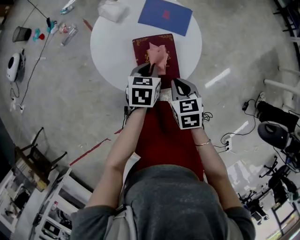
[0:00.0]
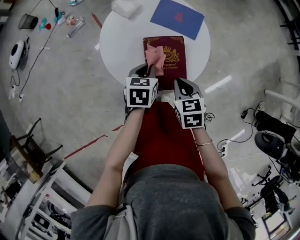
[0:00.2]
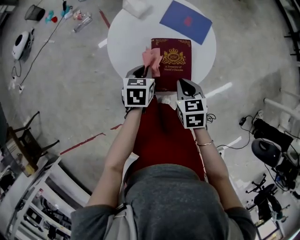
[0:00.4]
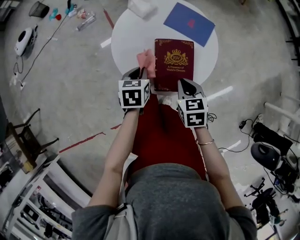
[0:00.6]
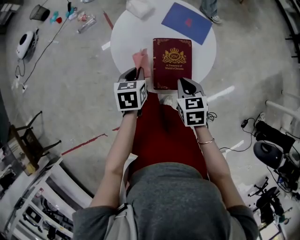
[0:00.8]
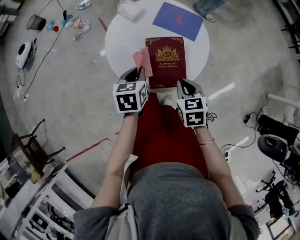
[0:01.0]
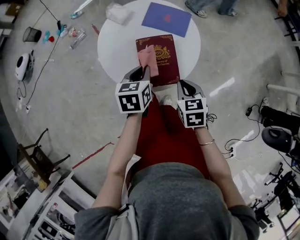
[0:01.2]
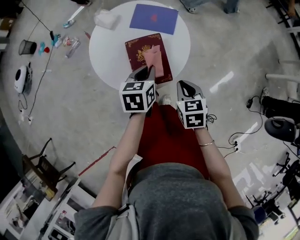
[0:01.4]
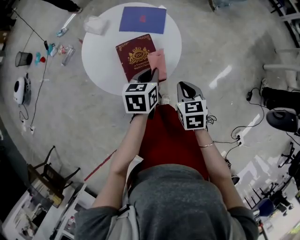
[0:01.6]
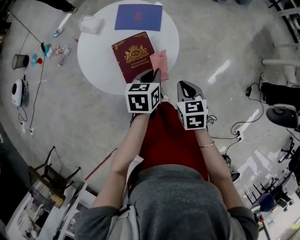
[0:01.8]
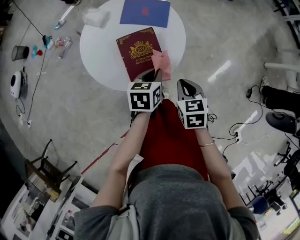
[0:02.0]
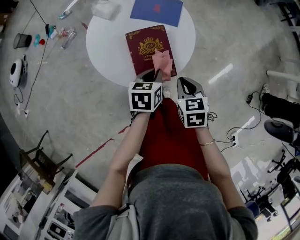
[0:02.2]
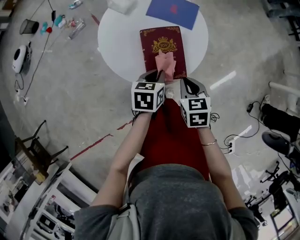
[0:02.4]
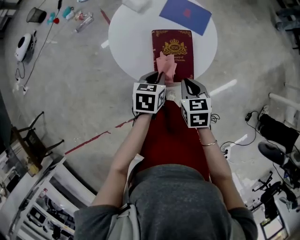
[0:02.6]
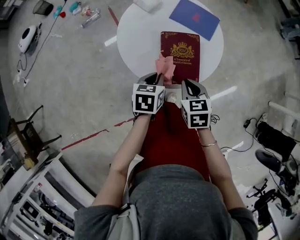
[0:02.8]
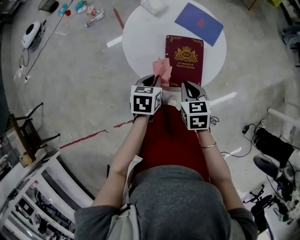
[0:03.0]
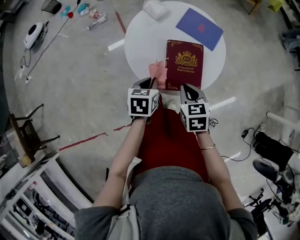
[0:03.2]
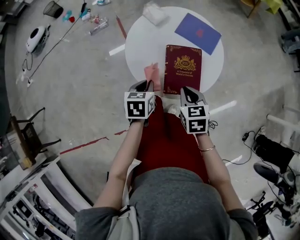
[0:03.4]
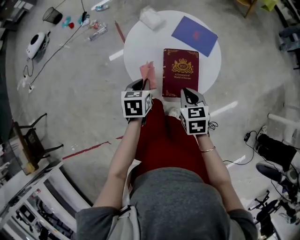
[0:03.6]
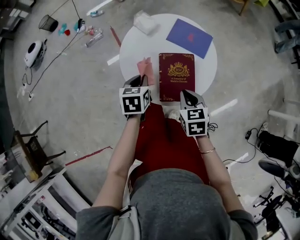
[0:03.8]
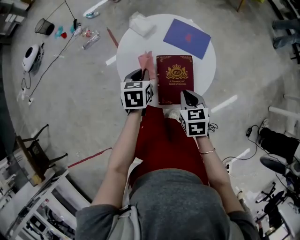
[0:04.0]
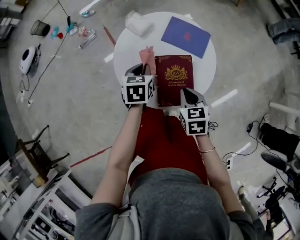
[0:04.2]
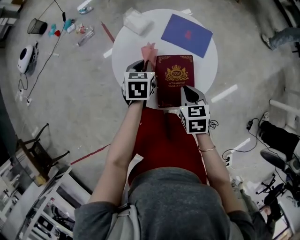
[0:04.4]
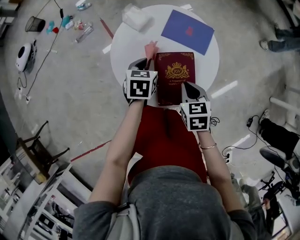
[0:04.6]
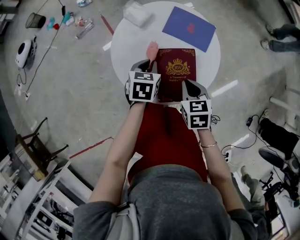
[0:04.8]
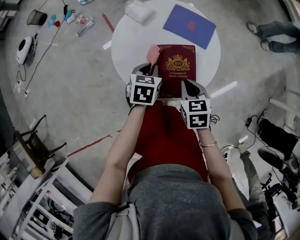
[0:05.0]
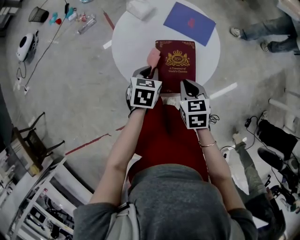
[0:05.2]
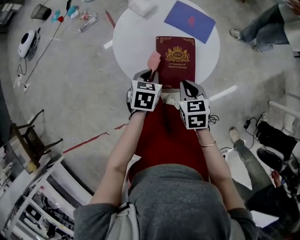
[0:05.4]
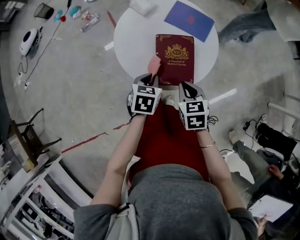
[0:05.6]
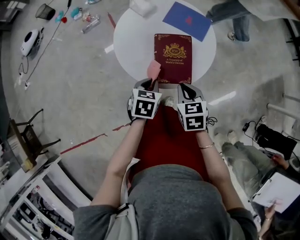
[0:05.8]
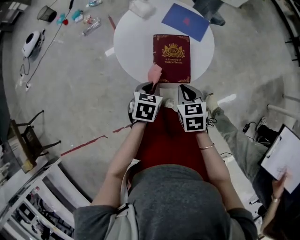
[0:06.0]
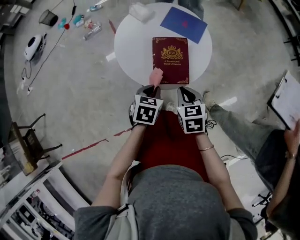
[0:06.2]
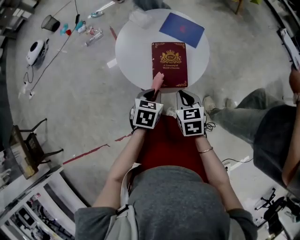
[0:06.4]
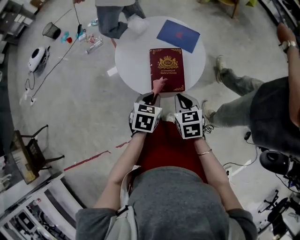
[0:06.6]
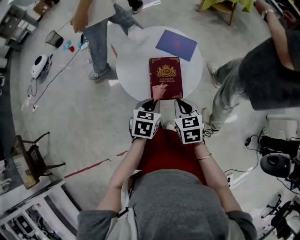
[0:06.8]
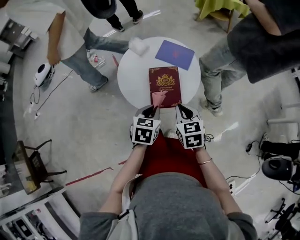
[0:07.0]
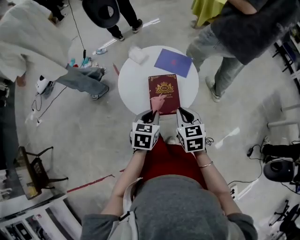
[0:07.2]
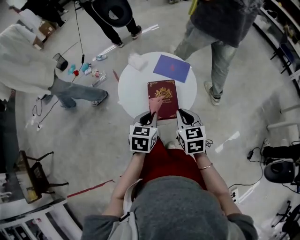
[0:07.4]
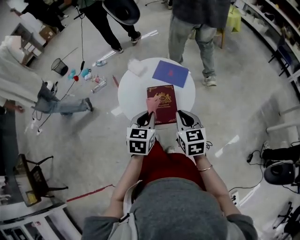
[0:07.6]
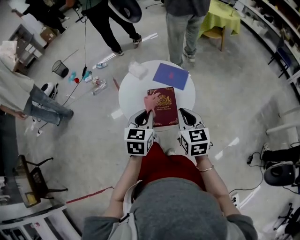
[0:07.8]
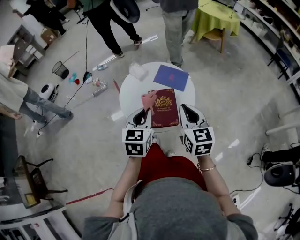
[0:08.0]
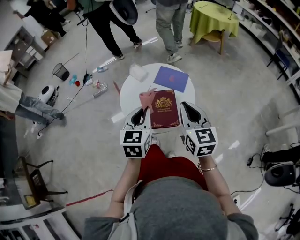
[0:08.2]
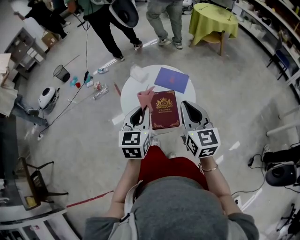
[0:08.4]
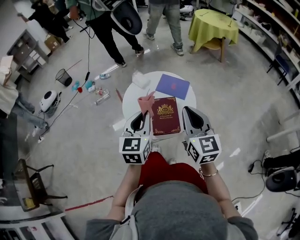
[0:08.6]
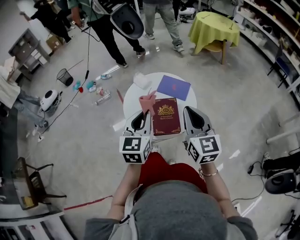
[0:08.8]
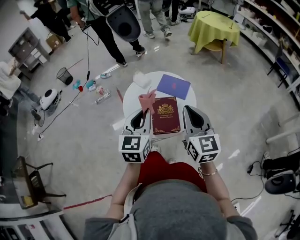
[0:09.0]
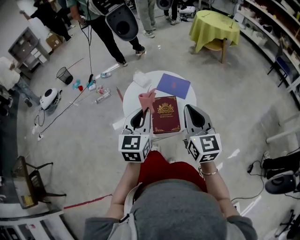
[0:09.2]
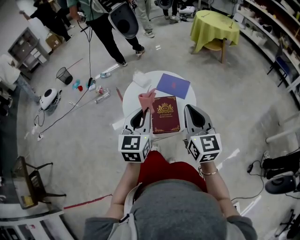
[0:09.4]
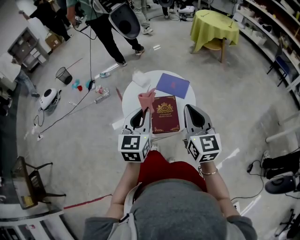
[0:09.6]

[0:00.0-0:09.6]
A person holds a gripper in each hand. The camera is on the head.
0:00.0 to 0:01.6: The right gripper travels to the right by about 10 cm. Meanwhile the left gripper moves roughly 10 cm to the left and comes back.
0:01.6 to 0:03.2: Both grippers travel together to the left, some 15 cm. The right gripper changes its angle by about 20 degrees, while the left gripper rotates approximately 20 degrees.
0:03.2 to 0:04.8: The right gripper heads forward, covering roughly 5 cm, while the left gripper is displaced forward by roughly 15 cm.
0:04.8 to 0:06.4: The left gripper is displaced backward by some 20 cm. Meanwhile the right gripper is displaced backward by roughly 10 cm.
0:06.4 to 0:08.0: Both grippers move upward, about 20 cm. The right gripper rotates approximately 30 degrees. Meanwhile the left gripper rotates roughly 30 degrees.
0:08.0 to 0:09.6: Both grippers travel together upward, some 5 cm.

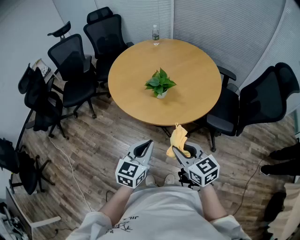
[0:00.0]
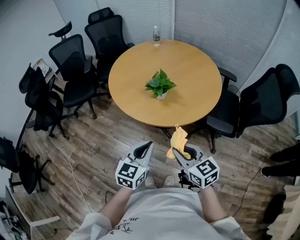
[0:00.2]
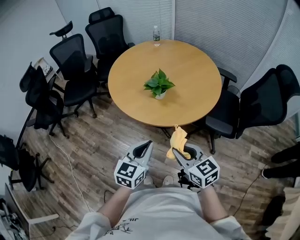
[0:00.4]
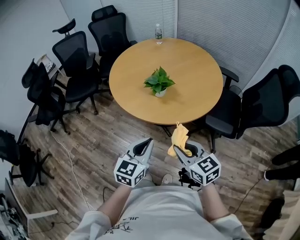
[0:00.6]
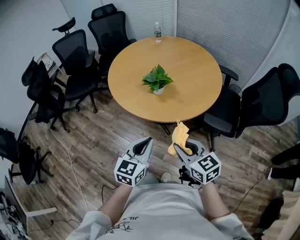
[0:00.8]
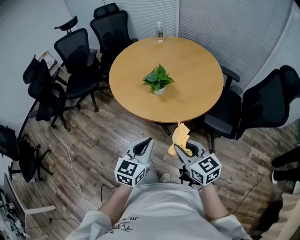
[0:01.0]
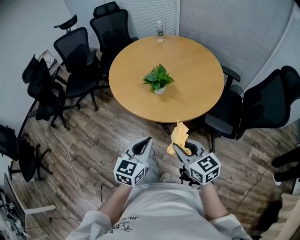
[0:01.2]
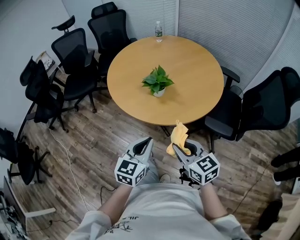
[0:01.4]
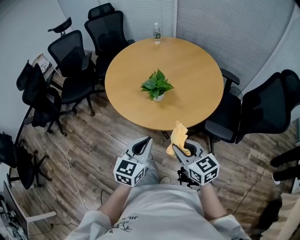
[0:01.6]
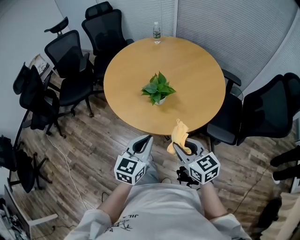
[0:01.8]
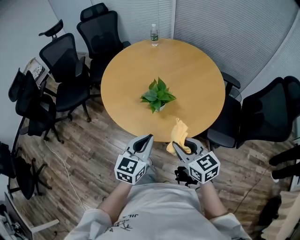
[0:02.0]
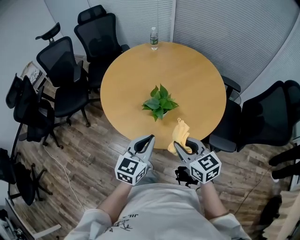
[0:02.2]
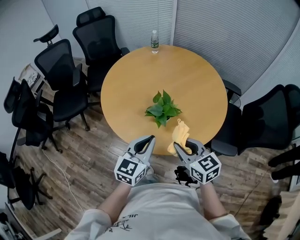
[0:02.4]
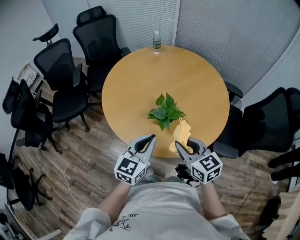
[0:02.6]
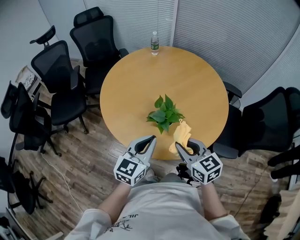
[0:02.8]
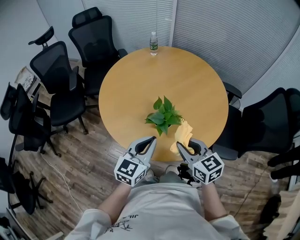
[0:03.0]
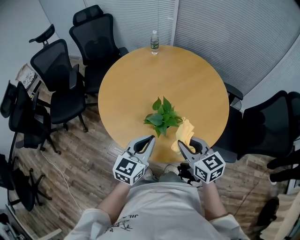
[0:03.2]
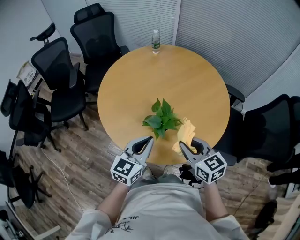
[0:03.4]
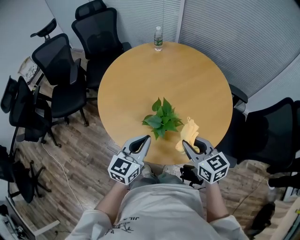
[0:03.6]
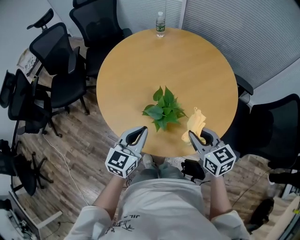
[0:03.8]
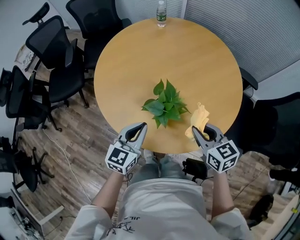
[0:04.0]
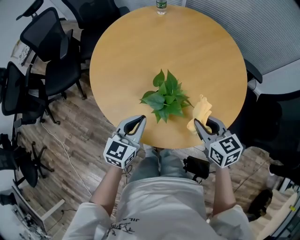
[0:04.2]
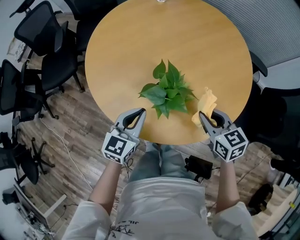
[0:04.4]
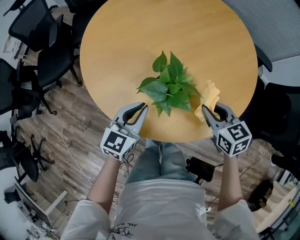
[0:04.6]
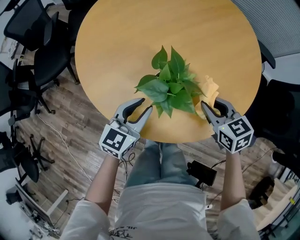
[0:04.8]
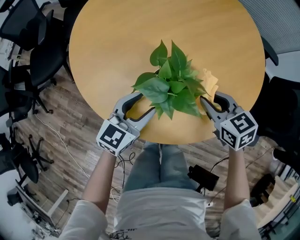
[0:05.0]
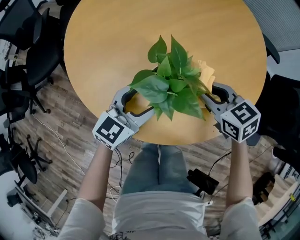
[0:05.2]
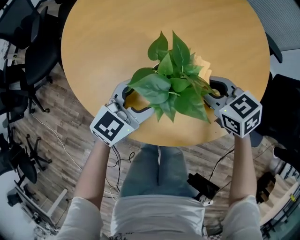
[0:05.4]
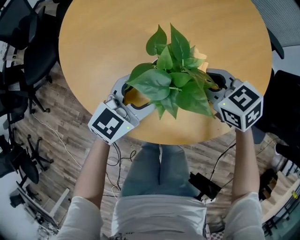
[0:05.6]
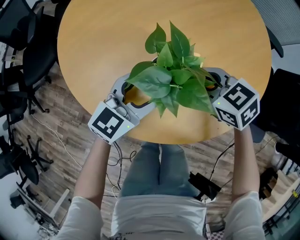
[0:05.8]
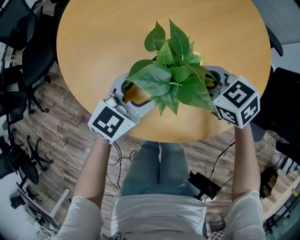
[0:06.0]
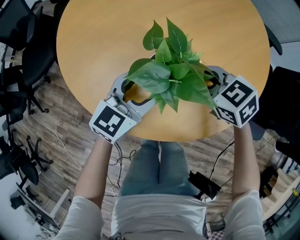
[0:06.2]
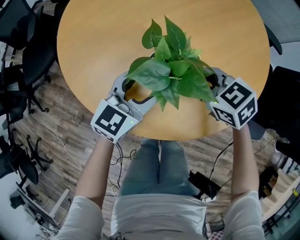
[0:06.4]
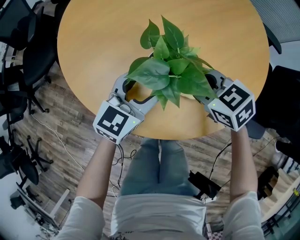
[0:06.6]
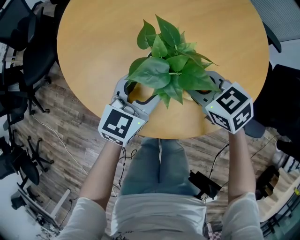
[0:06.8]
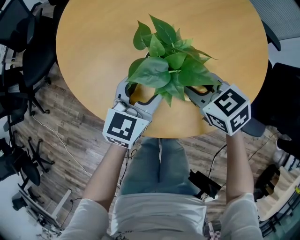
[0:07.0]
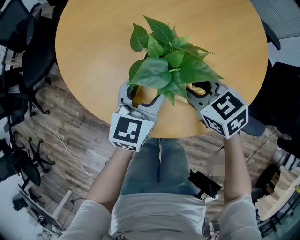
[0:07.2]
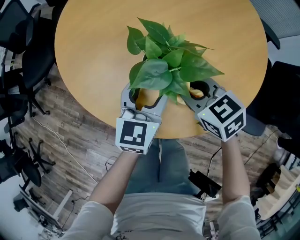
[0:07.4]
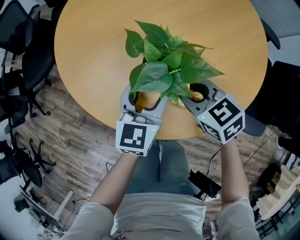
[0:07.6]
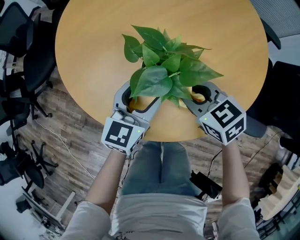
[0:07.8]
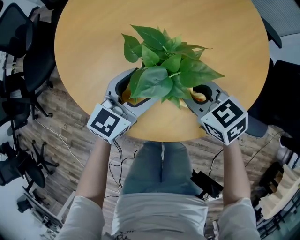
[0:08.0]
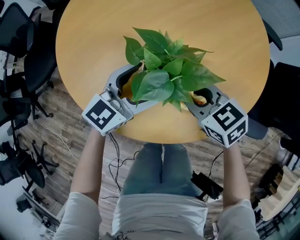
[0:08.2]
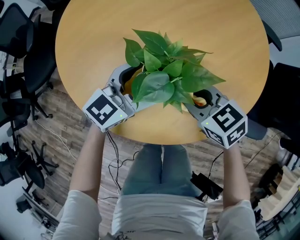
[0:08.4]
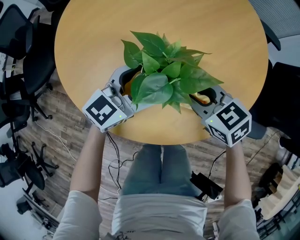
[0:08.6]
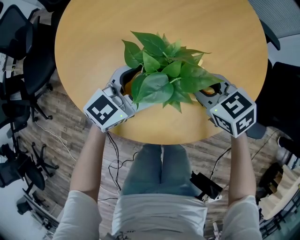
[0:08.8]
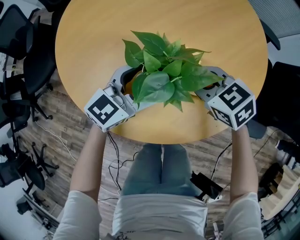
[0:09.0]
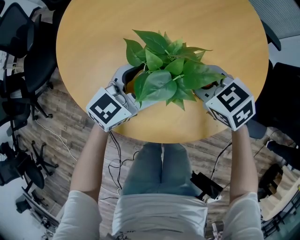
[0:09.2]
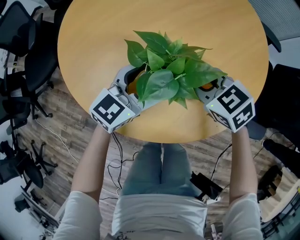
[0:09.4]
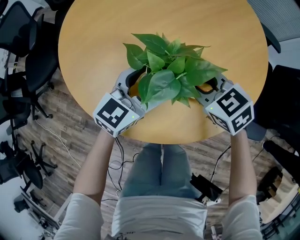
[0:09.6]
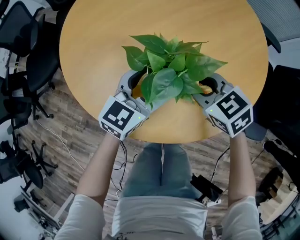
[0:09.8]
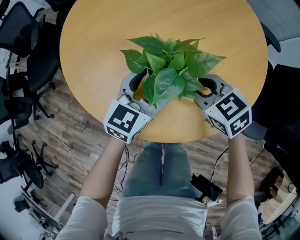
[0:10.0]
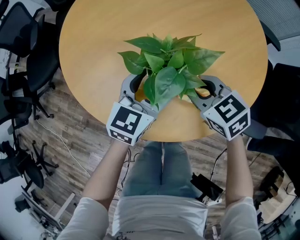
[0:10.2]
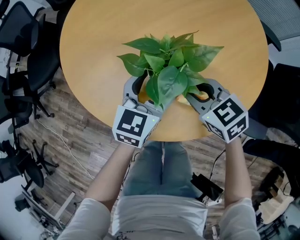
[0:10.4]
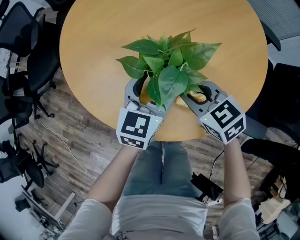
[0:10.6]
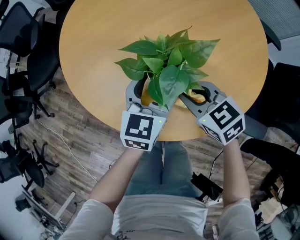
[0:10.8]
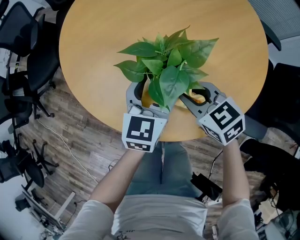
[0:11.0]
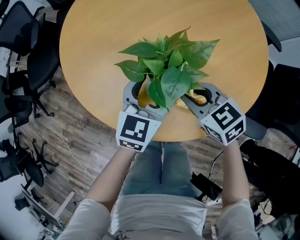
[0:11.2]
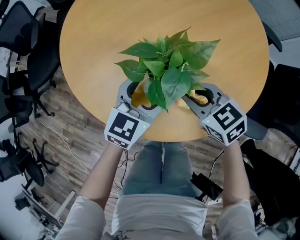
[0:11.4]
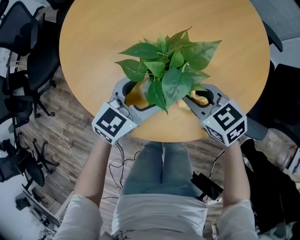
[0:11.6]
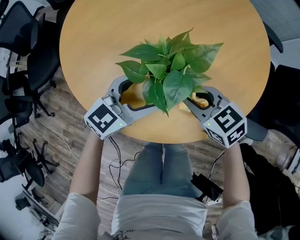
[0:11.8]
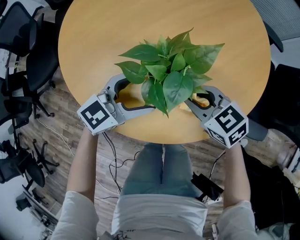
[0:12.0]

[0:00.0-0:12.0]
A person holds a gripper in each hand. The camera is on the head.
0:00.0 to 0:01.6: The left gripper ends up about 5 cm from where it was; the right gripper moves some 5 cm.
0:01.6 to 0:03.0: Both grippers travel together forward, some 20 cm.
0:03.0 to 0:04.4: The right gripper moves downward, forward and to the right, about 20 cm, while the left gripper is displaced downward and forward by about 15 cm.
0:04.4 to 0:06.0: The right gripper is displaced downward, to the left and forward by about 15 cm, and turns by roughly 20 degrees, while the left gripper travels downward and to the right by about 10 cm, rotates roughly 20 degrees, and opens its fingers.
0:06.0 to 0:07.6: The left gripper swivels approximately 30 degrees.
0:07.6 to 0:09.0: The right gripper moves forward, about 5 cm. Meanwhile the left gripper rotates about 40 degrees.
0:09.0 to 0:10.4: The left gripper changes its angle by about 30 degrees.
0:10.4 to 0:12.0: The left gripper shifts by roughly 5 cm, and rotates roughly 30 degrees.

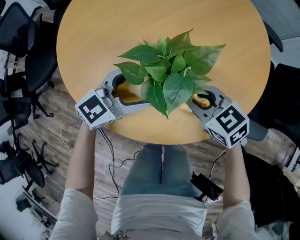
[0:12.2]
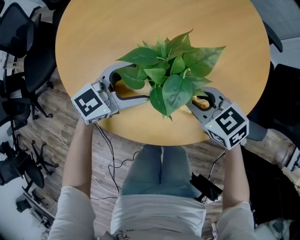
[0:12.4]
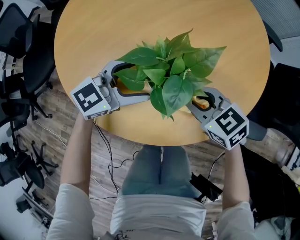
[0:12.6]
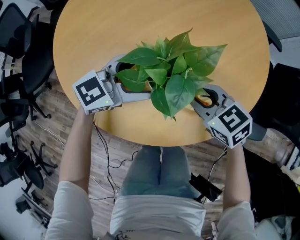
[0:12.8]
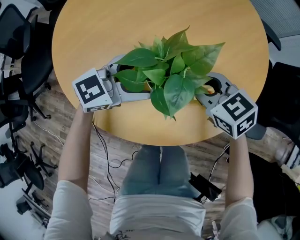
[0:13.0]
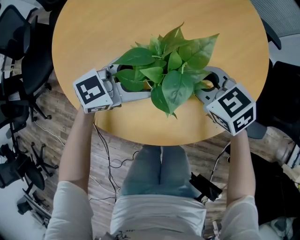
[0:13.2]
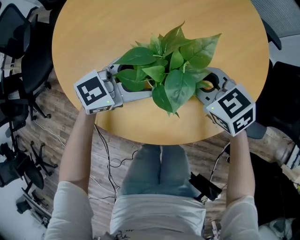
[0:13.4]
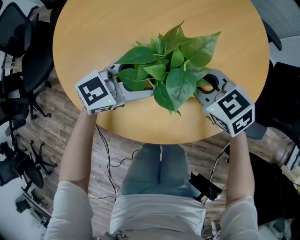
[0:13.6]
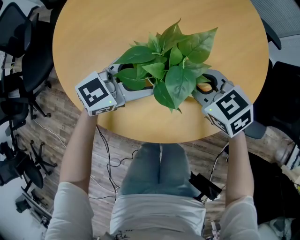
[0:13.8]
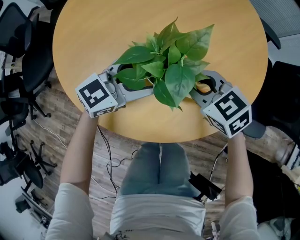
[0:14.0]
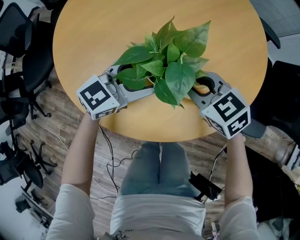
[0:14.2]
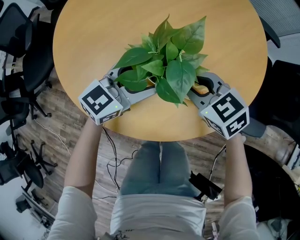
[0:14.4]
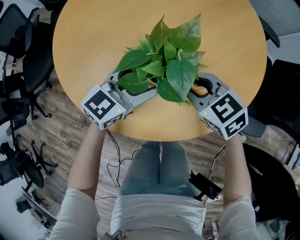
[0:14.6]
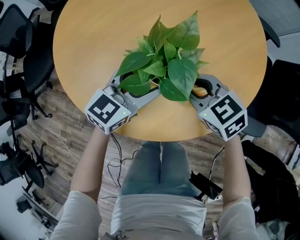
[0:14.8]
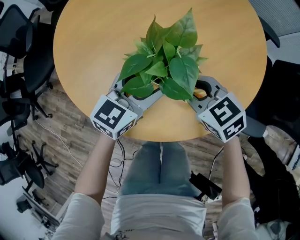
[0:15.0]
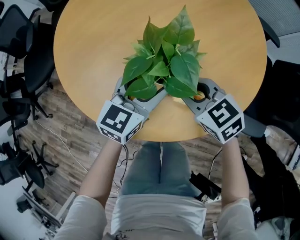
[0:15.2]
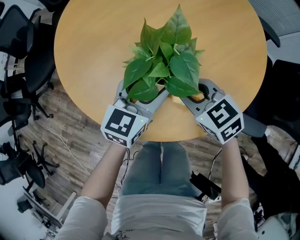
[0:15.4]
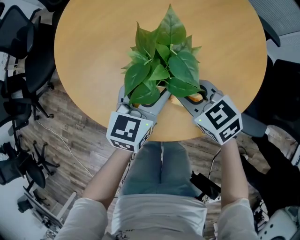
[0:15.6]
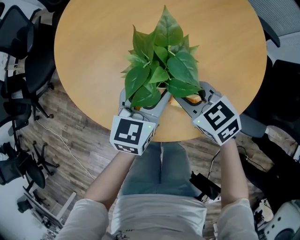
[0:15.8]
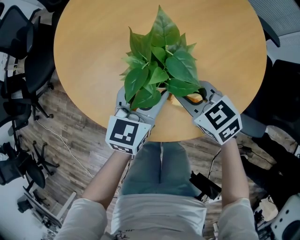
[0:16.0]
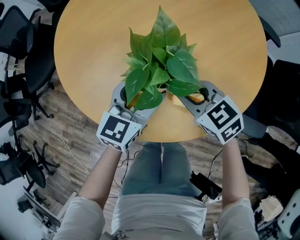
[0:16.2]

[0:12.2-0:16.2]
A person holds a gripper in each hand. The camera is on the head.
0:12.2 to 0:13.6: The right gripper ends up approximately 5 cm from where it was.
0:13.6 to 0:14.8: The left gripper rotates roughly 20 degrees.
